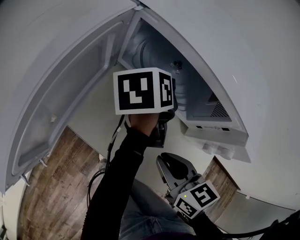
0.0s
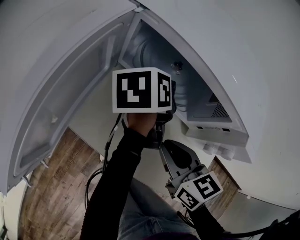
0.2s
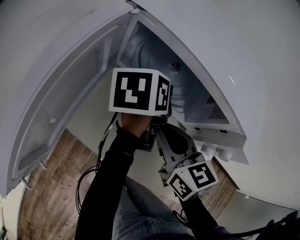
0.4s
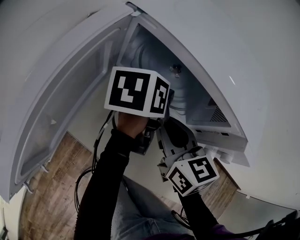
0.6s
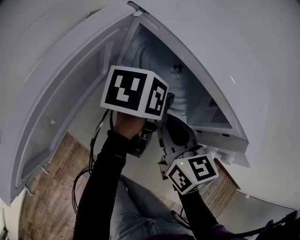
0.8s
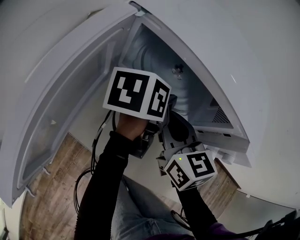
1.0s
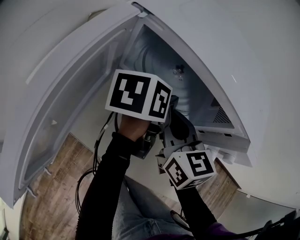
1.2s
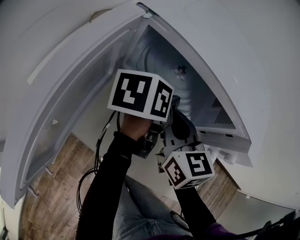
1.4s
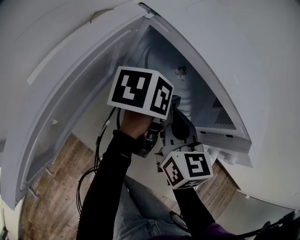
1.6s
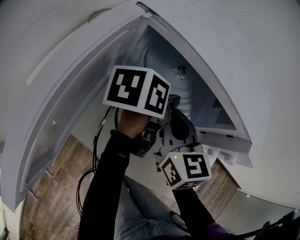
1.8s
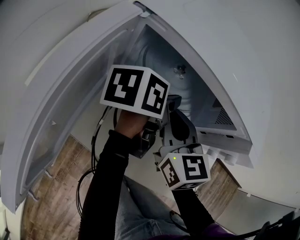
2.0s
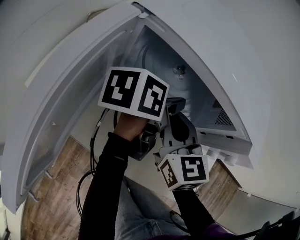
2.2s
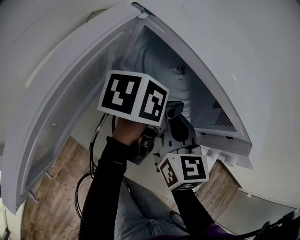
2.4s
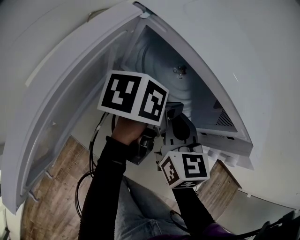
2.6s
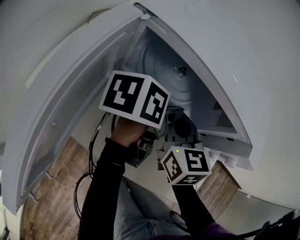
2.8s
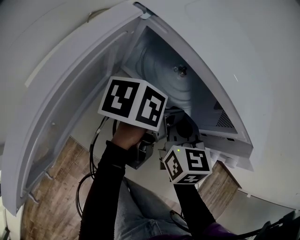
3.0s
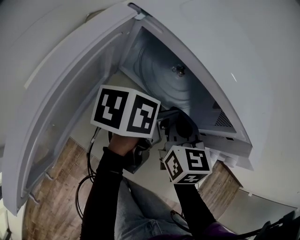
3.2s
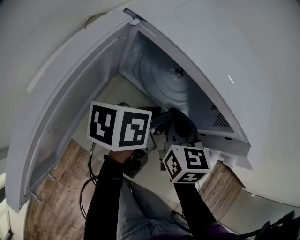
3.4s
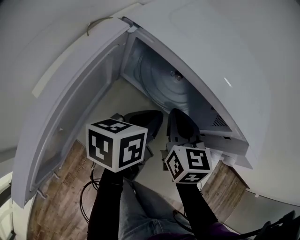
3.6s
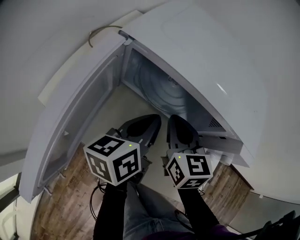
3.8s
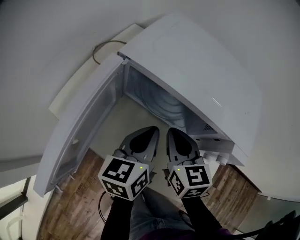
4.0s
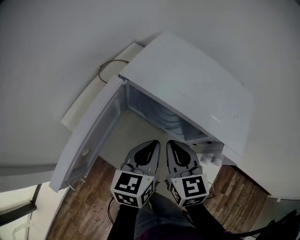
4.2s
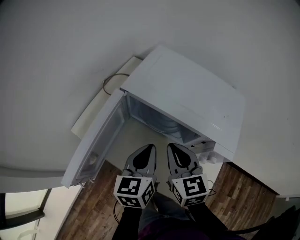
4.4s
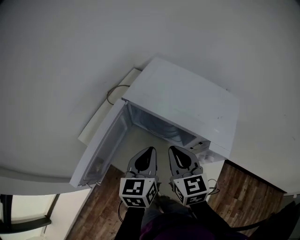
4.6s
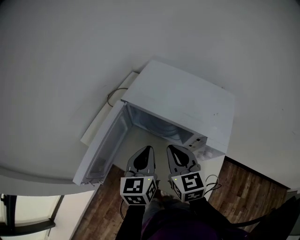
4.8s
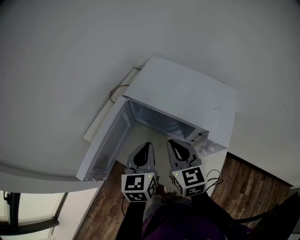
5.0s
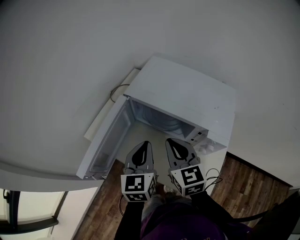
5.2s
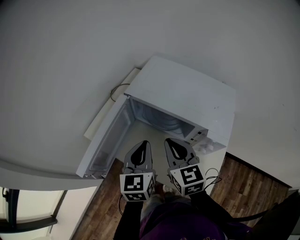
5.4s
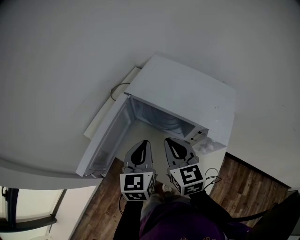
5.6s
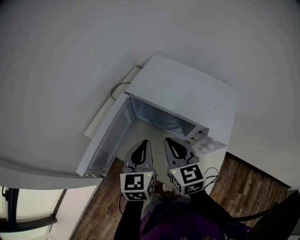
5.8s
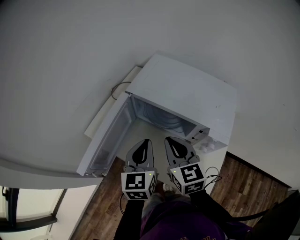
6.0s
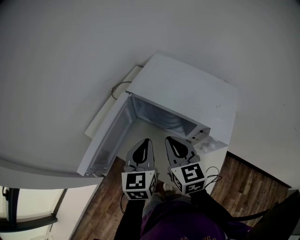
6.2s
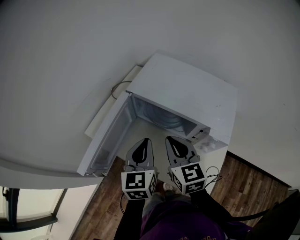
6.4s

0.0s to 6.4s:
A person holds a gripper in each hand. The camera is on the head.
0.0s to 1.6s: The left gripper turns by some 20 degrees. The right gripper is displaced forward and to the left by about 15 cm, and turns by about 20 degrees.
1.6s to 3.2s: There are only small adjustments of the grippers.
3.2s to 4.8s: Both grippers move upward, about 15 cm. The left gripper rotates some 60 degrees, and closes up.
4.8s to 6.4s: The grippers stay close to where they were, moving slightly.

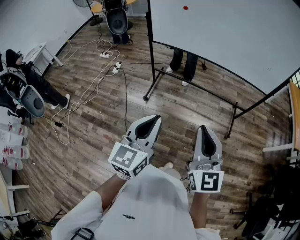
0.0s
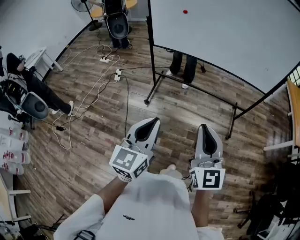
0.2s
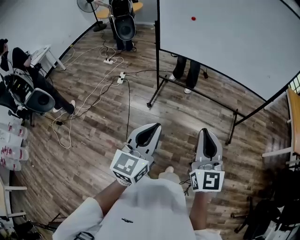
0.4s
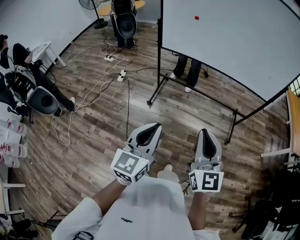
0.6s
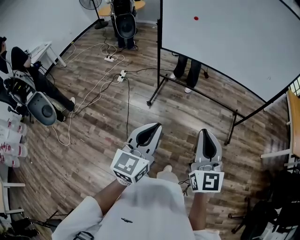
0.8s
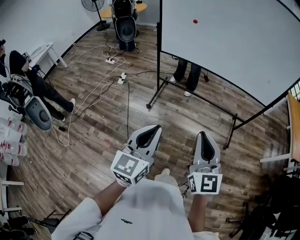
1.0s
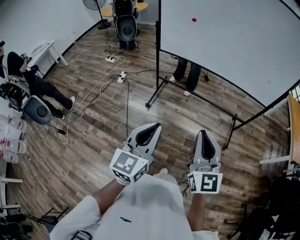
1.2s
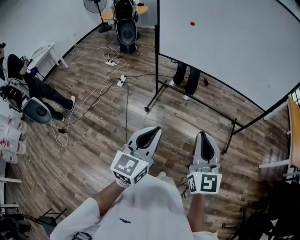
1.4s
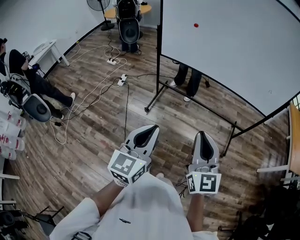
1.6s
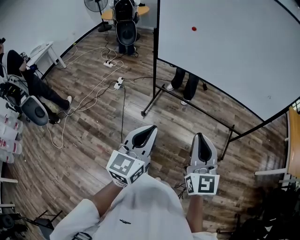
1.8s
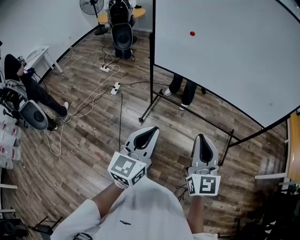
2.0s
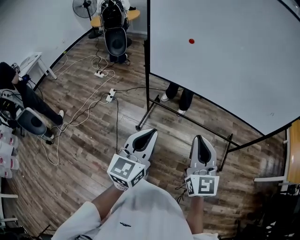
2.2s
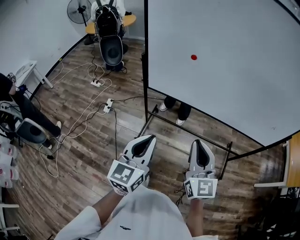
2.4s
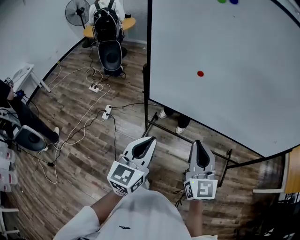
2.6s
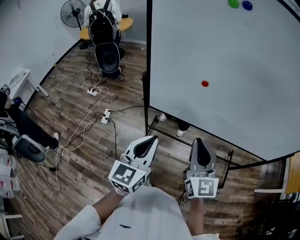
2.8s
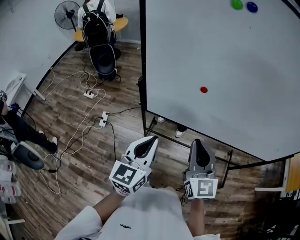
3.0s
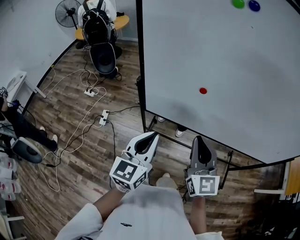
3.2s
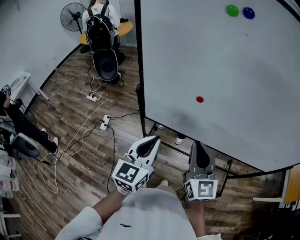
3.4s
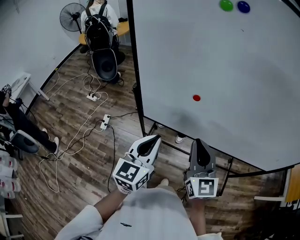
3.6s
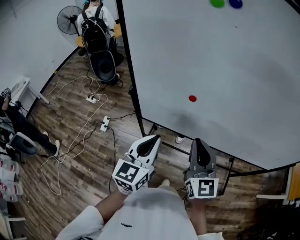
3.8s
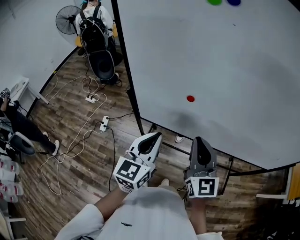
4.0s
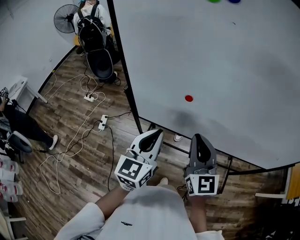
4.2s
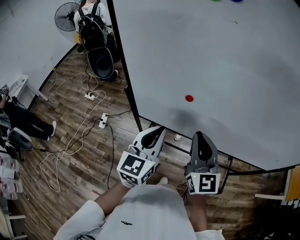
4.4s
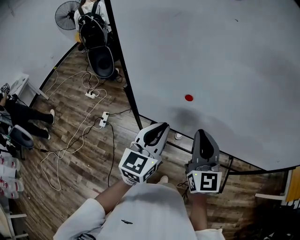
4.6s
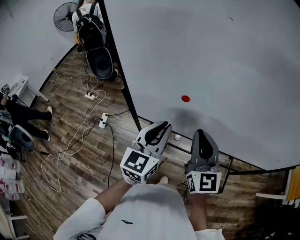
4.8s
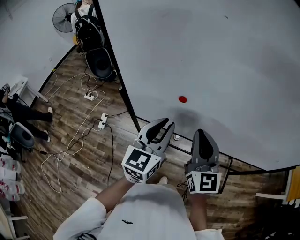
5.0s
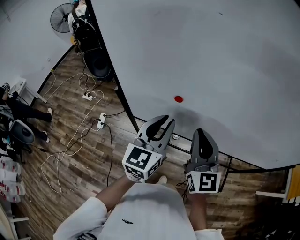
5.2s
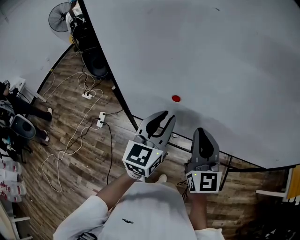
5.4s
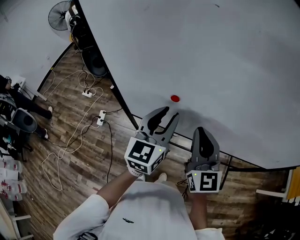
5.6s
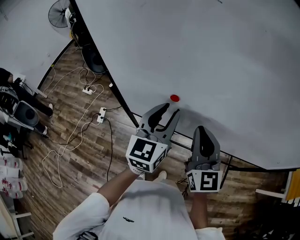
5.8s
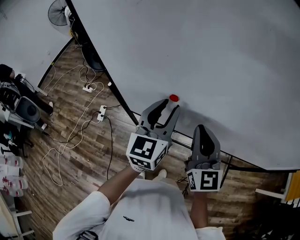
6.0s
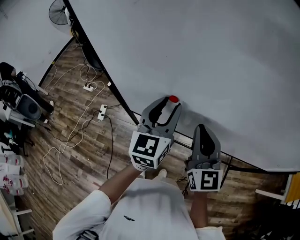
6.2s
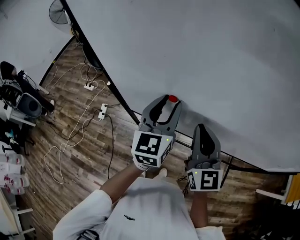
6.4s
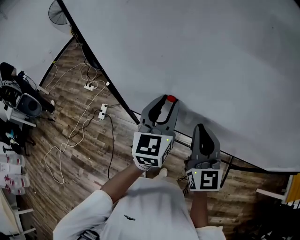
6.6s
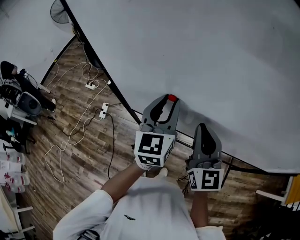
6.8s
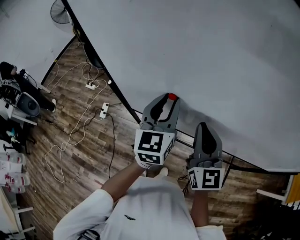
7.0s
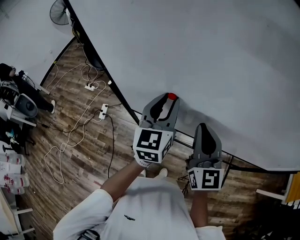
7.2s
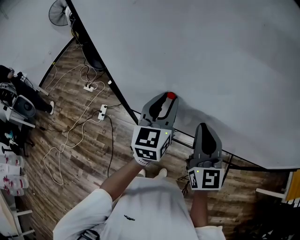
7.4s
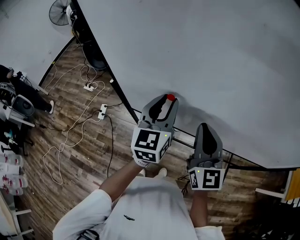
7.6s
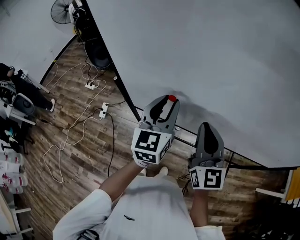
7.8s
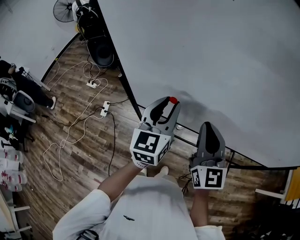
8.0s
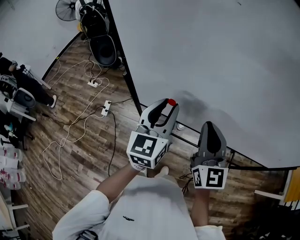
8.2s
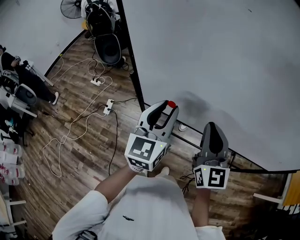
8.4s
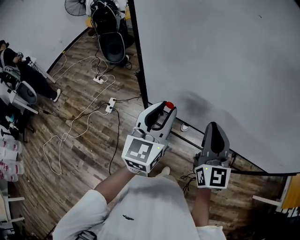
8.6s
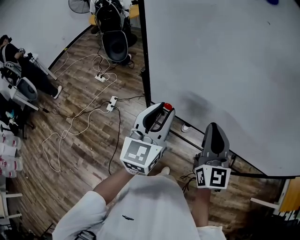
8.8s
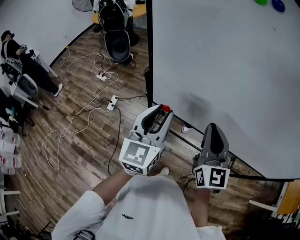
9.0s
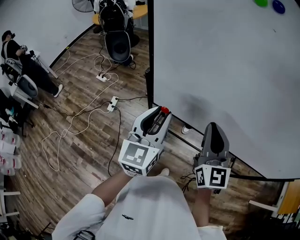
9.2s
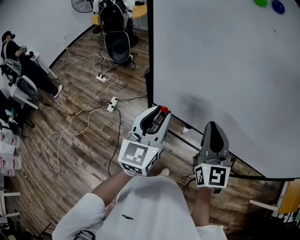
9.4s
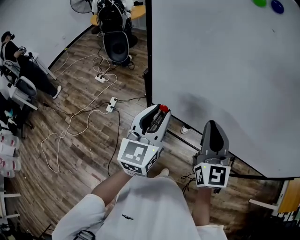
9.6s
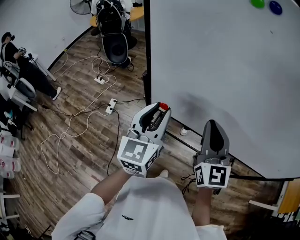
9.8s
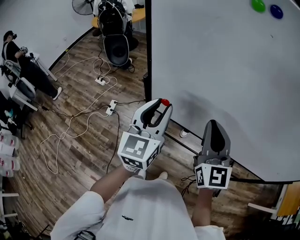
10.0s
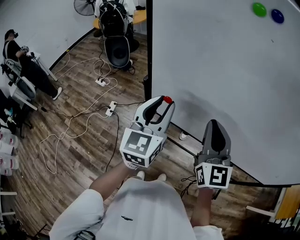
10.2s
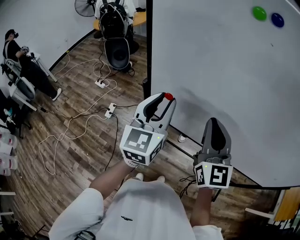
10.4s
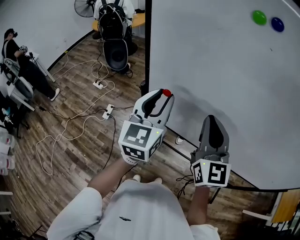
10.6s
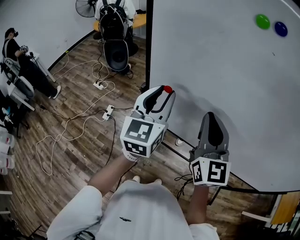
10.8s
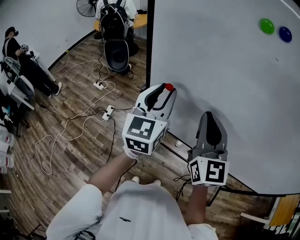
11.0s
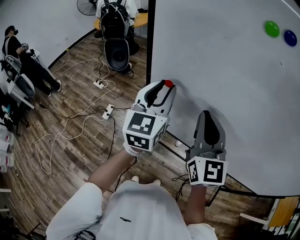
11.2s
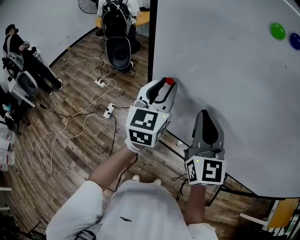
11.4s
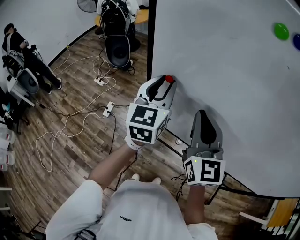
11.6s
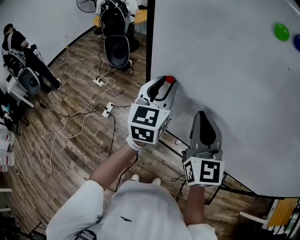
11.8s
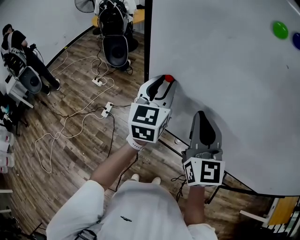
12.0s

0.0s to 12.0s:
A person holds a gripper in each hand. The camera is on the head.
1.6s to 3.0s: Both grippers are carried forward, roughly 50 cm.
3.0s to 4.4s: Both grippers move forward and to the right, some 10 cm.
4.4s to 6.0s: The left gripper heads forward and to the right, covering roughly 10 cm, and opens its fingers. Meanwhile the right gripper is displaced forward by some 5 cm.
6.0s to 7.6s: The grippers move only a little.
7.6s to 9.0s: The left gripper goes some 15 cm to the left and backward. The right gripper shifts some 10 cm to the left.
9.0s to 10.4s: The right gripper shifts some 5 cm upward; the left gripper is displaced forward and upward by about 10 cm.
10.4s to 12.0s: The left gripper moves forward, roughly 10 cm, while the right gripper shifts about 5 cm forward.

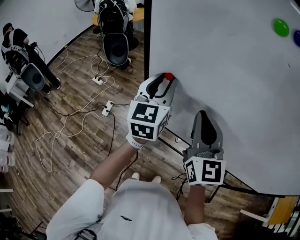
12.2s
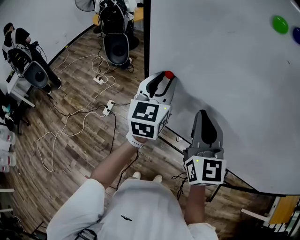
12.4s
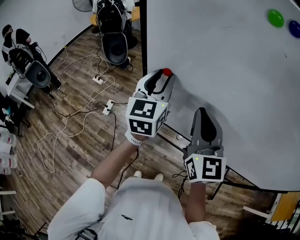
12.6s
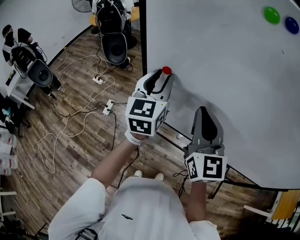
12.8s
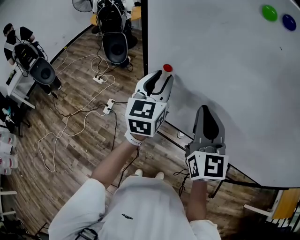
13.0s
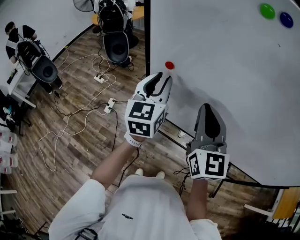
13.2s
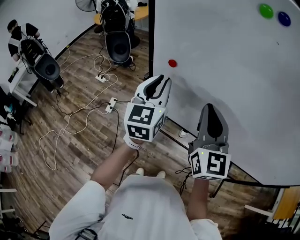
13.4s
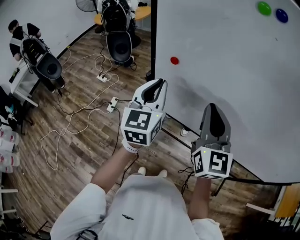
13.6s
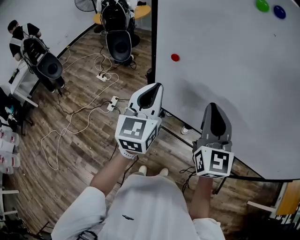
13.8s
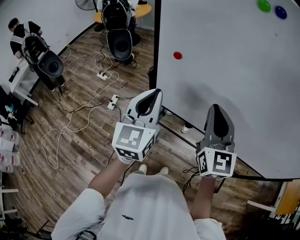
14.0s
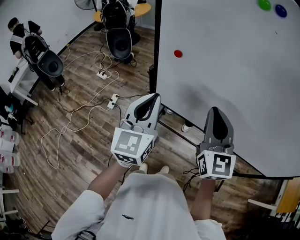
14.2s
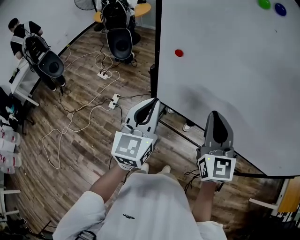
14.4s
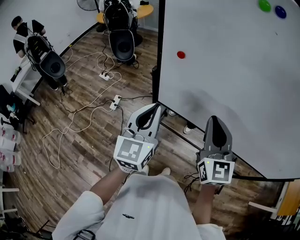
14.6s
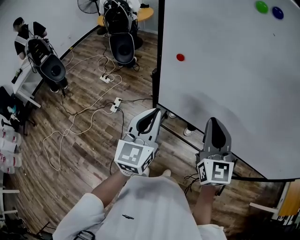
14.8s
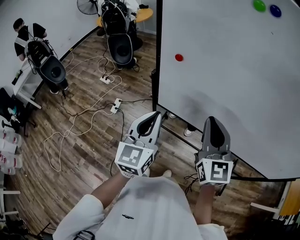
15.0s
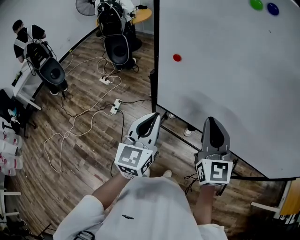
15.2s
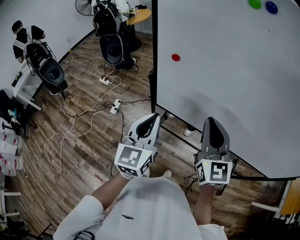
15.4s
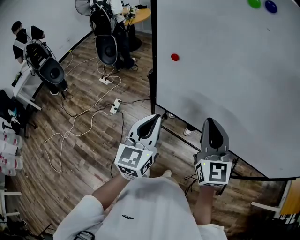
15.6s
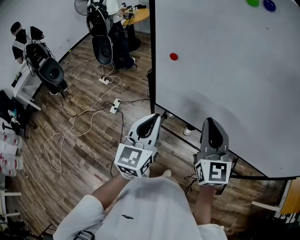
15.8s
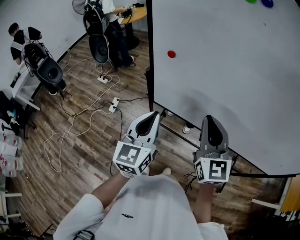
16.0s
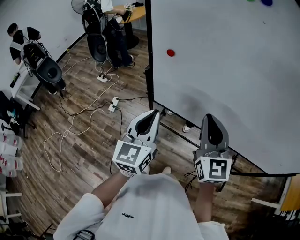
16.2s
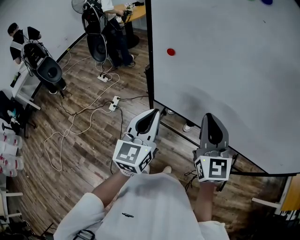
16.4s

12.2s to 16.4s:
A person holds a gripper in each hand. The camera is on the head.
12.2s to 13.6s: The left gripper moves backward, approximately 10 cm, and closes its fingers.
13.6s to 15.0s: The left gripper goes roughly 10 cm backward; the right gripper travels backward by about 5 cm.
15.0s to 16.4s: The grippers stay close to where they were, moving slightly.

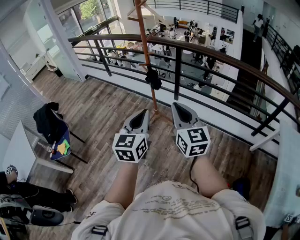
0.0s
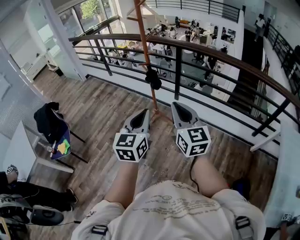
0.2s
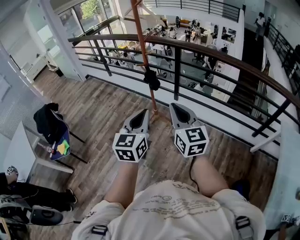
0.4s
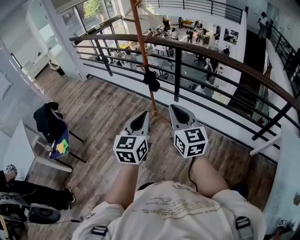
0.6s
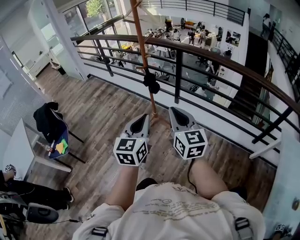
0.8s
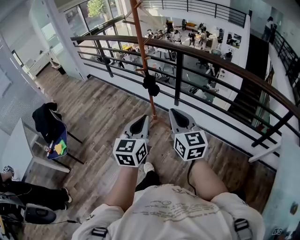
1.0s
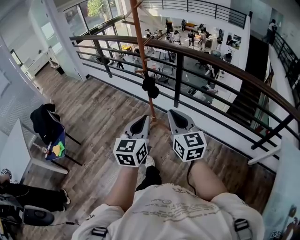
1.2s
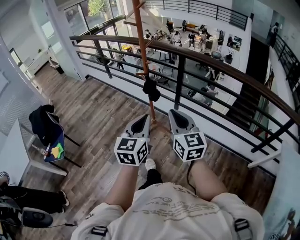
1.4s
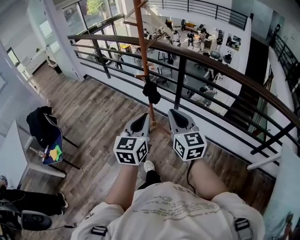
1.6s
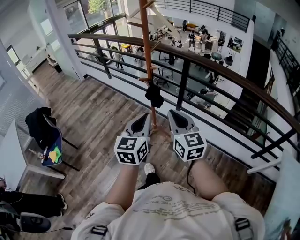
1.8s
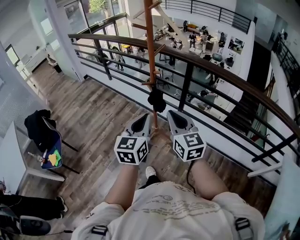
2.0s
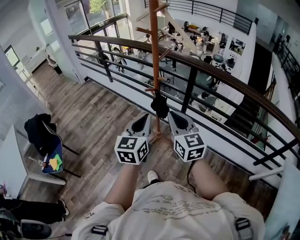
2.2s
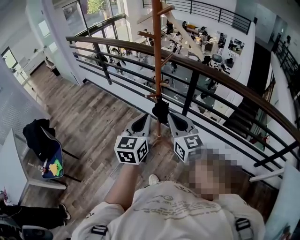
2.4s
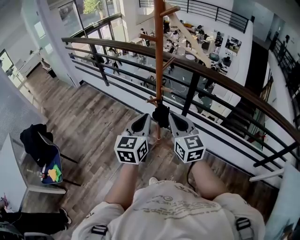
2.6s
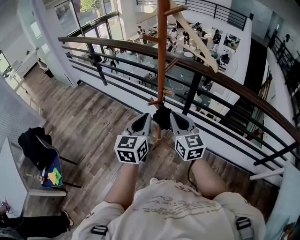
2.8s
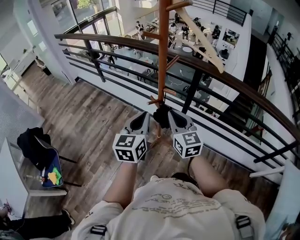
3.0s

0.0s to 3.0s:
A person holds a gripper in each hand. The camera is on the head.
0.0s to 1.6s: Both grippers move forward, some 20 cm.
1.6s to 3.0s: The grippers both shift forward by approximately 30 cm.
